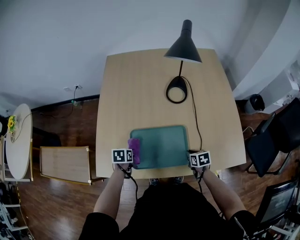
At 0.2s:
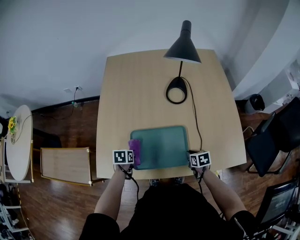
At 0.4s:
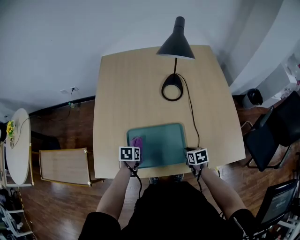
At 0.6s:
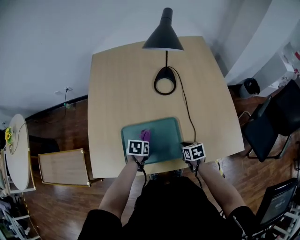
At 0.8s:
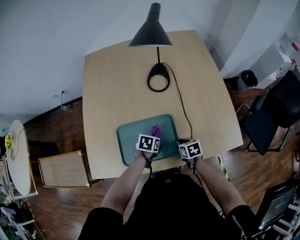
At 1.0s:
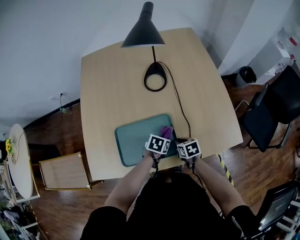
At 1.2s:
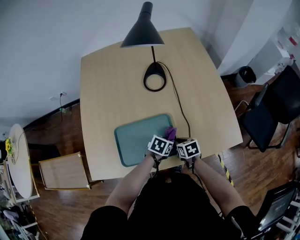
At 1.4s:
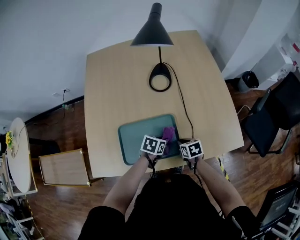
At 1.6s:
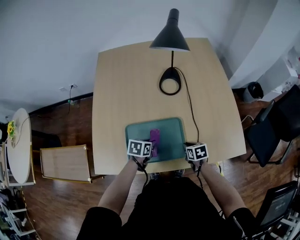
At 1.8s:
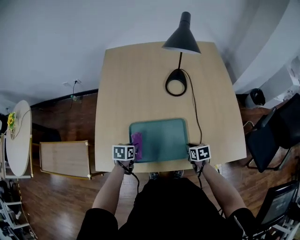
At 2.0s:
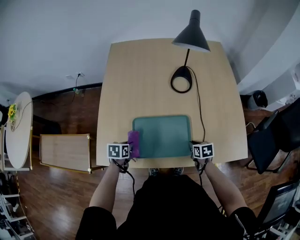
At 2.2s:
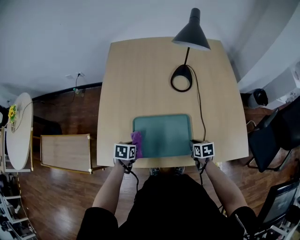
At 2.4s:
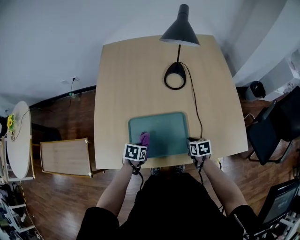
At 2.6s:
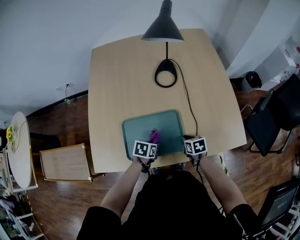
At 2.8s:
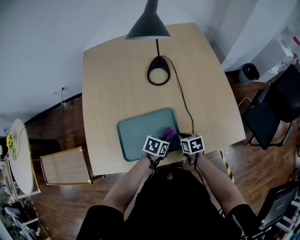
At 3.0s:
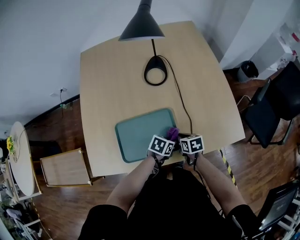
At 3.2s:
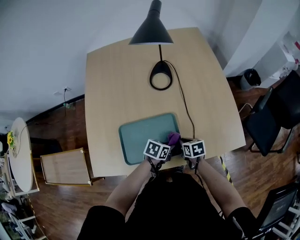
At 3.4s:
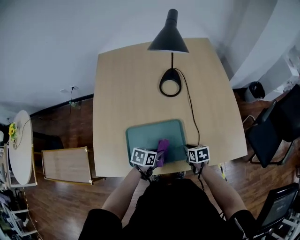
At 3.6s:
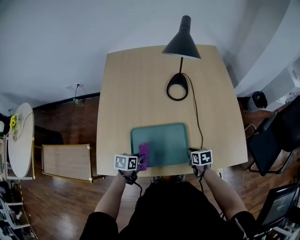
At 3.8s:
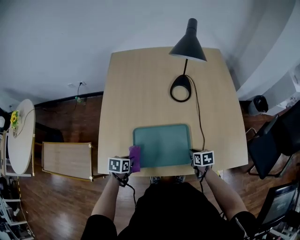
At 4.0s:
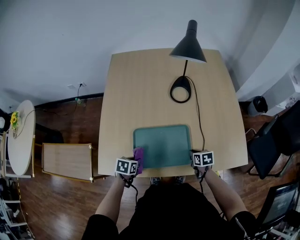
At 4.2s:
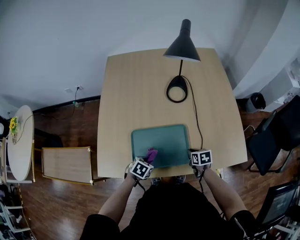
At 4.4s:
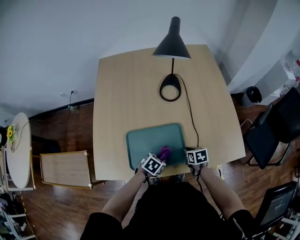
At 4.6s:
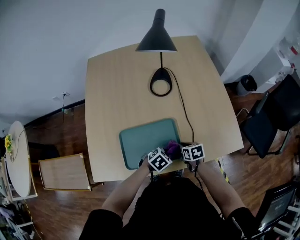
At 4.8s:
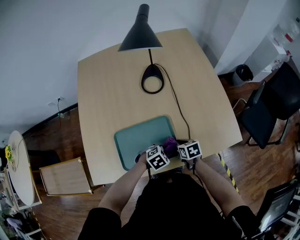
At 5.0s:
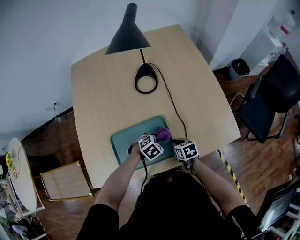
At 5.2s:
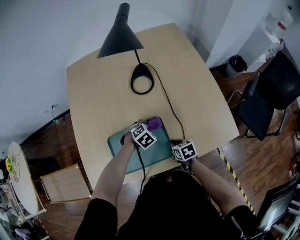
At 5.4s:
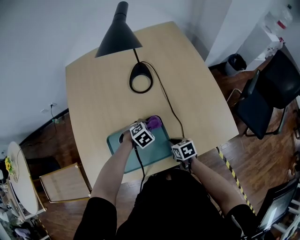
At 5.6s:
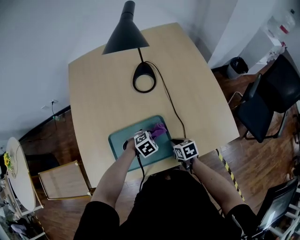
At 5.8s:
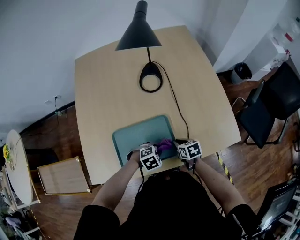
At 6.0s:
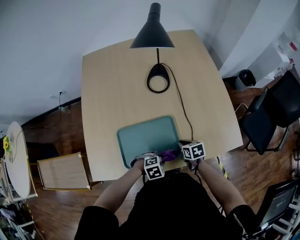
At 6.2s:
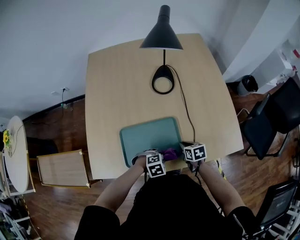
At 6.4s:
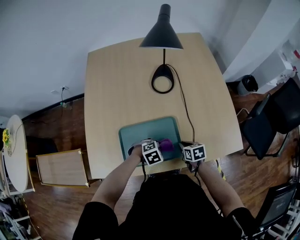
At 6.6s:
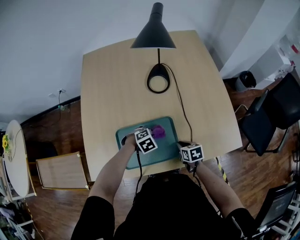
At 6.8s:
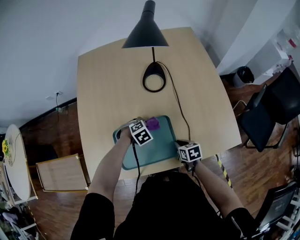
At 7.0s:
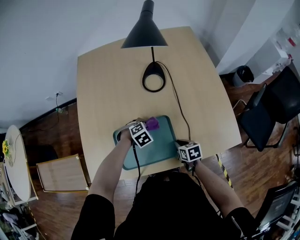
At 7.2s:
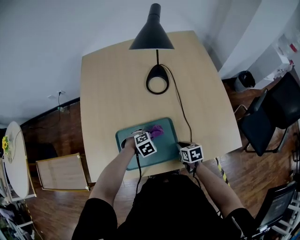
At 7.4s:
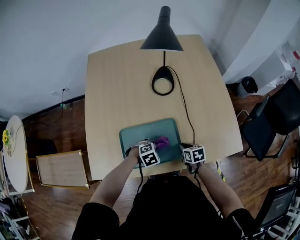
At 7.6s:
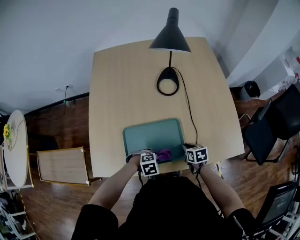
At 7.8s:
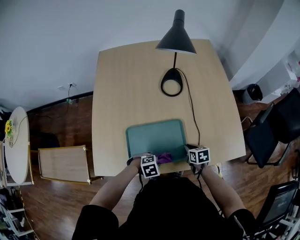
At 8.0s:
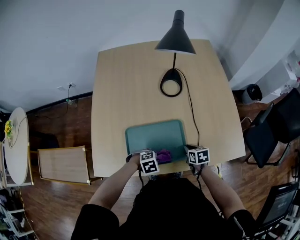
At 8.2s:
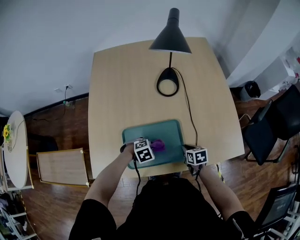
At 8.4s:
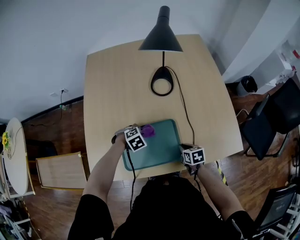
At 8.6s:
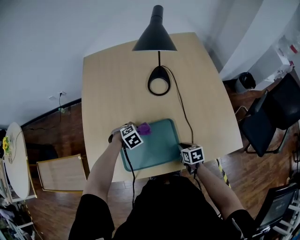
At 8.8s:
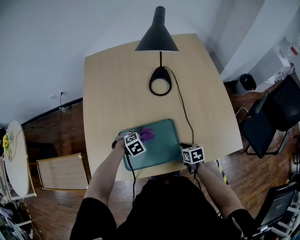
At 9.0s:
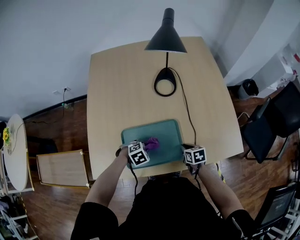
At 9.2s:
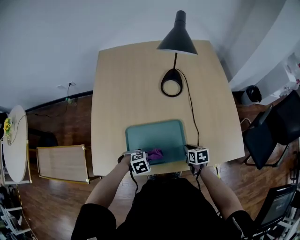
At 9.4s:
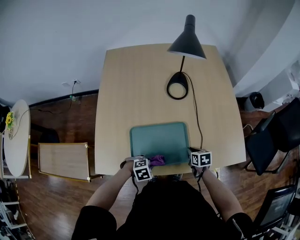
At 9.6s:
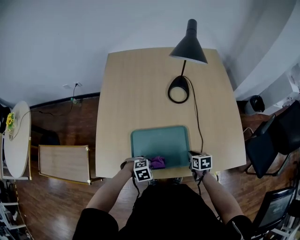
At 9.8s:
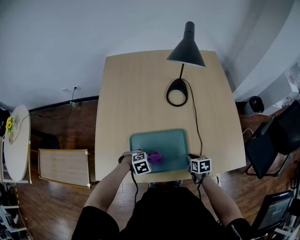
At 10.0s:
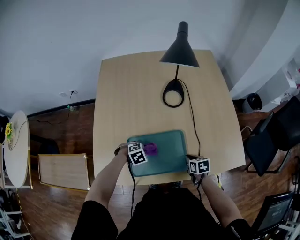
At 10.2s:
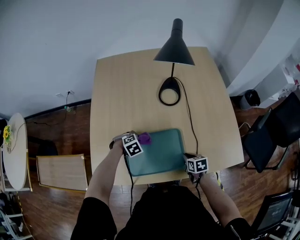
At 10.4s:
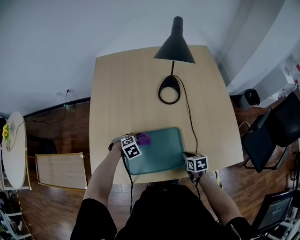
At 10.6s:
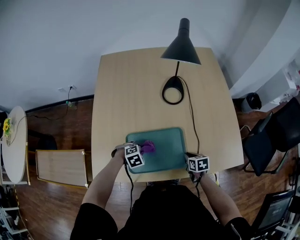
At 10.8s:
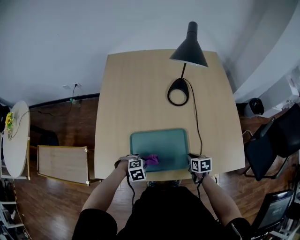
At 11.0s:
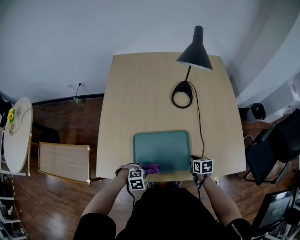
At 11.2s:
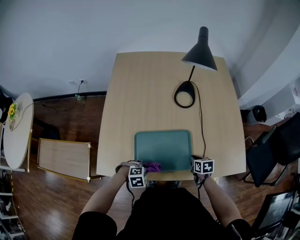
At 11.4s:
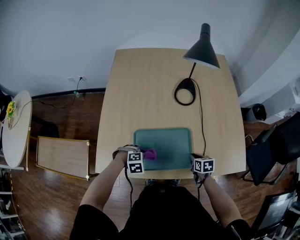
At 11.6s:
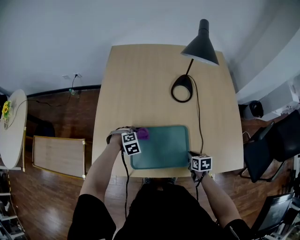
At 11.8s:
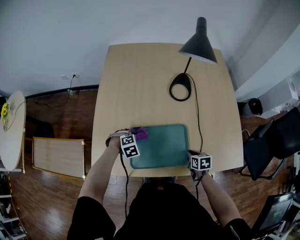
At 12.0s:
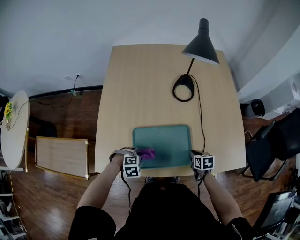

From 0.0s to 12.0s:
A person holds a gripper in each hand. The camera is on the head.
From 0.0s to 1.6s: The left gripper shifts about 15 cm to the right, and turns by roughly 20 degrees.
From 1.6s to 3.0s: The left gripper goes approximately 15 cm to the right, and changes its angle by approximately 20 degrees.
From 3.0s to 4.4s: The left gripper goes to the left and returns, approximately 30 cm each way.
From 4.4s to 6.0s: The left gripper turns by some 40 degrees.
From 9.0s to 10.4s: The left gripper changes place by some 10 cm.
From 10.4s to 12.0s: The left gripper moves about 15 cm.

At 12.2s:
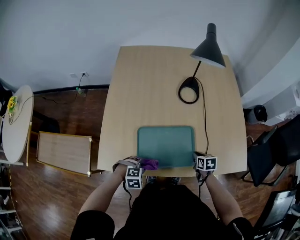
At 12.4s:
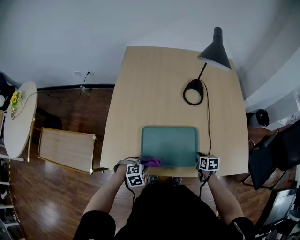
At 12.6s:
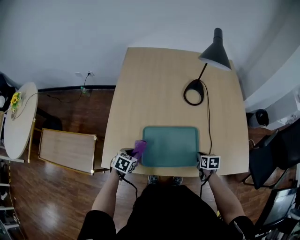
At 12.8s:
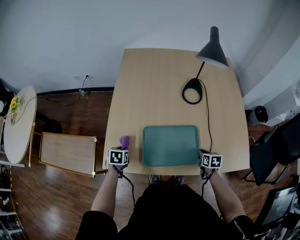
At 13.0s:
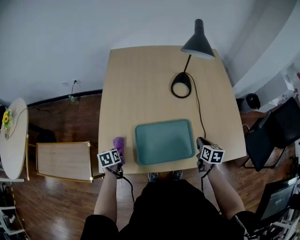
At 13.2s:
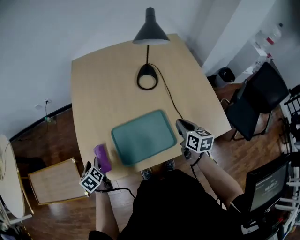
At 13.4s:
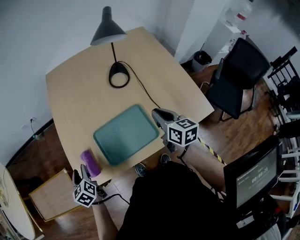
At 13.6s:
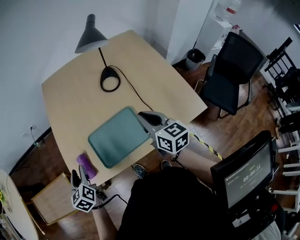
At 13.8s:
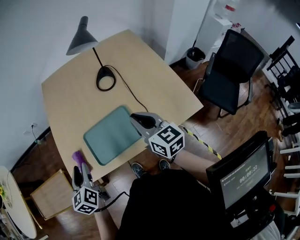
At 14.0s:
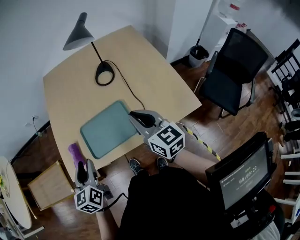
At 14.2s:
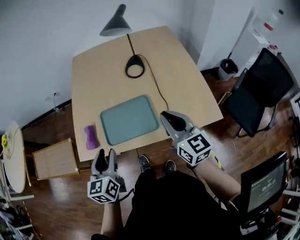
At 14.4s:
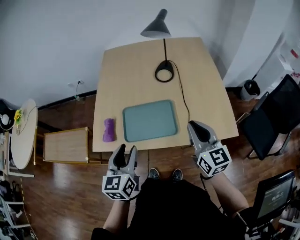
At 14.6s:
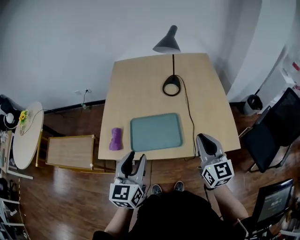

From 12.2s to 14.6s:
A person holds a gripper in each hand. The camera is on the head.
From 12.2s to 13.4s: The right gripper heads upward, covering roughly 25 cm, and angles its fingers upward, by roughly 40 degrees, while the left gripper heads to the left, upward and forward, covering about 25 cm, twists approximately 90 degrees counterclockwise, seen from behind, and opens up.
From 13.4s to 14.6s: The left gripper heads to the right, backward and upward, covering about 35 cm, and swivels some 30 degrees. The right gripper heads backward and upward, covering some 20 cm, and turns by some 30 degrees.

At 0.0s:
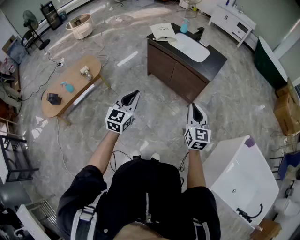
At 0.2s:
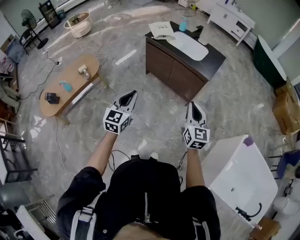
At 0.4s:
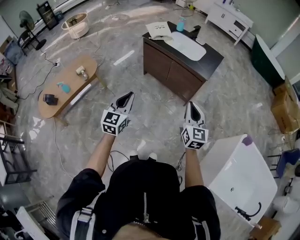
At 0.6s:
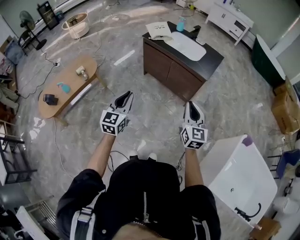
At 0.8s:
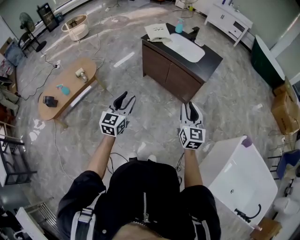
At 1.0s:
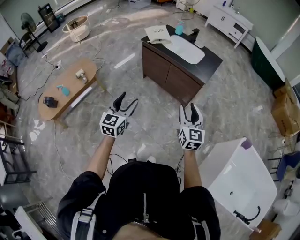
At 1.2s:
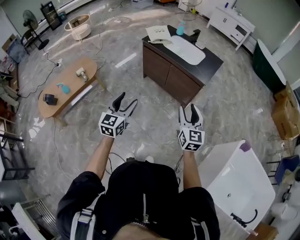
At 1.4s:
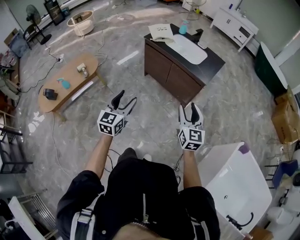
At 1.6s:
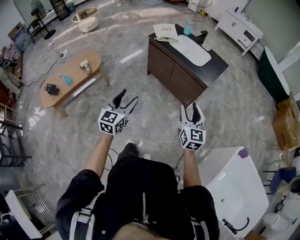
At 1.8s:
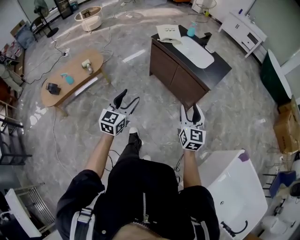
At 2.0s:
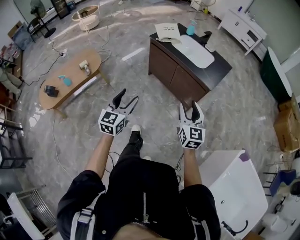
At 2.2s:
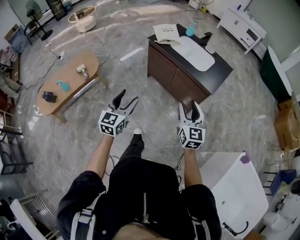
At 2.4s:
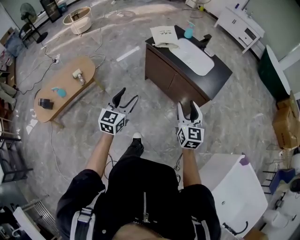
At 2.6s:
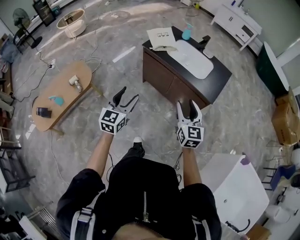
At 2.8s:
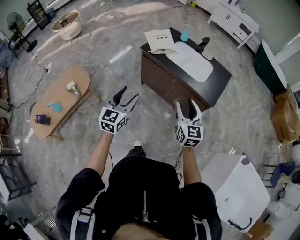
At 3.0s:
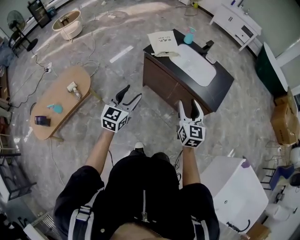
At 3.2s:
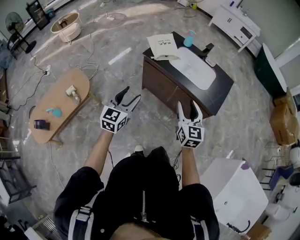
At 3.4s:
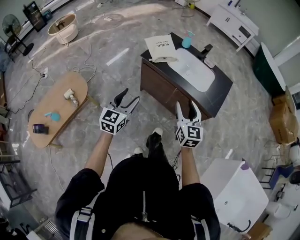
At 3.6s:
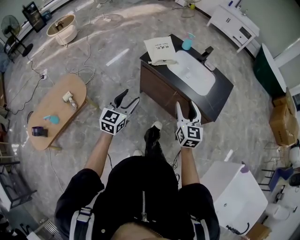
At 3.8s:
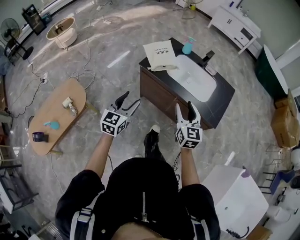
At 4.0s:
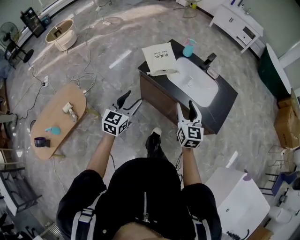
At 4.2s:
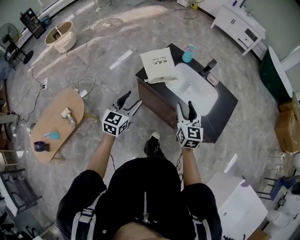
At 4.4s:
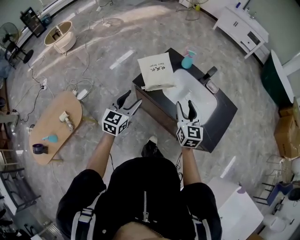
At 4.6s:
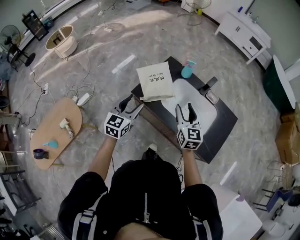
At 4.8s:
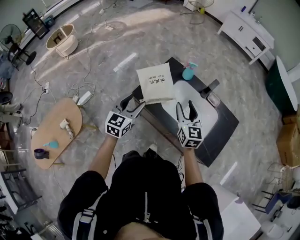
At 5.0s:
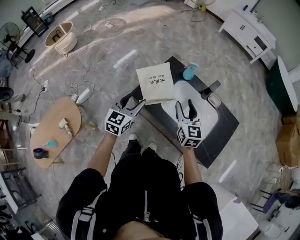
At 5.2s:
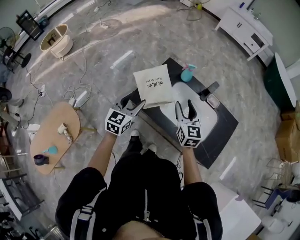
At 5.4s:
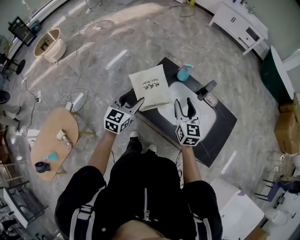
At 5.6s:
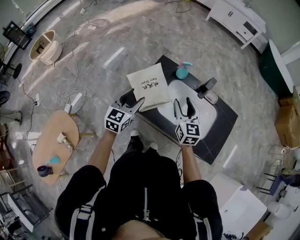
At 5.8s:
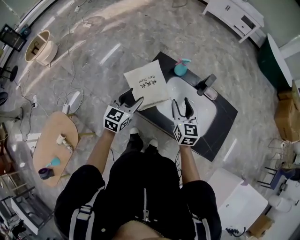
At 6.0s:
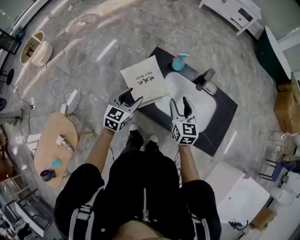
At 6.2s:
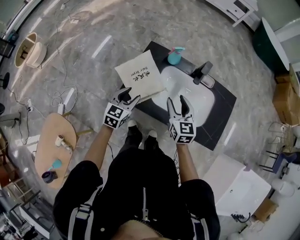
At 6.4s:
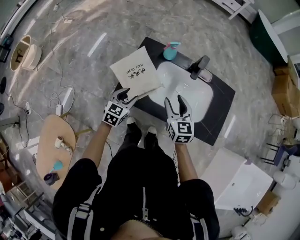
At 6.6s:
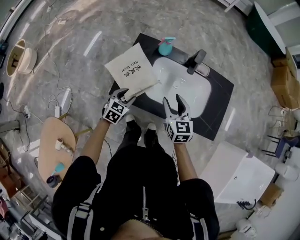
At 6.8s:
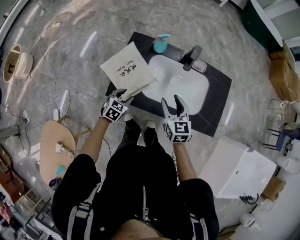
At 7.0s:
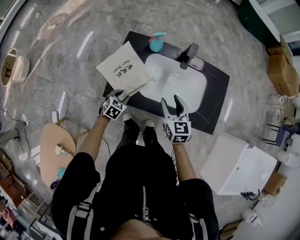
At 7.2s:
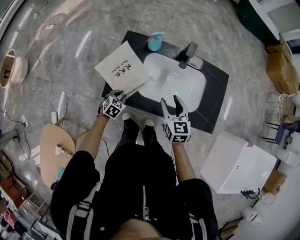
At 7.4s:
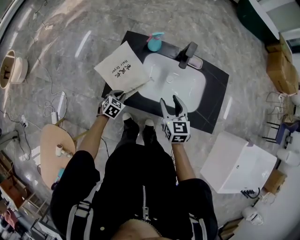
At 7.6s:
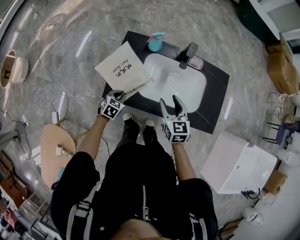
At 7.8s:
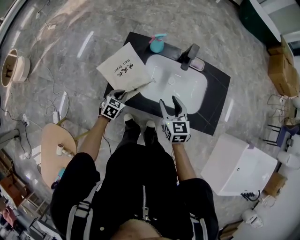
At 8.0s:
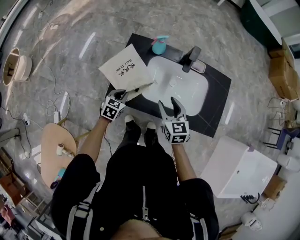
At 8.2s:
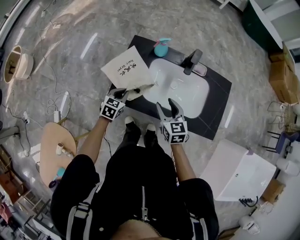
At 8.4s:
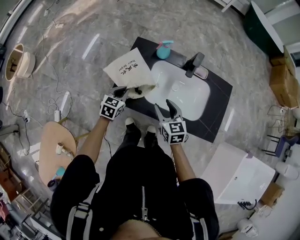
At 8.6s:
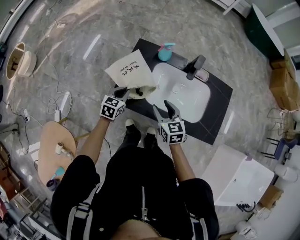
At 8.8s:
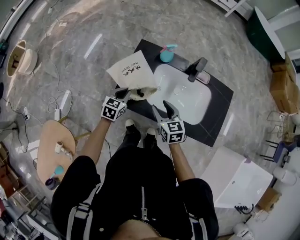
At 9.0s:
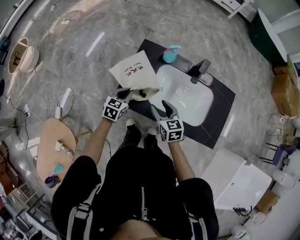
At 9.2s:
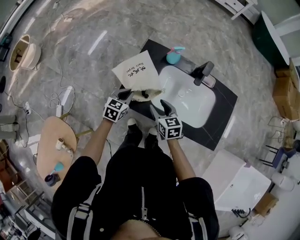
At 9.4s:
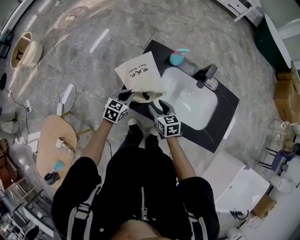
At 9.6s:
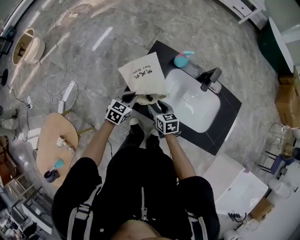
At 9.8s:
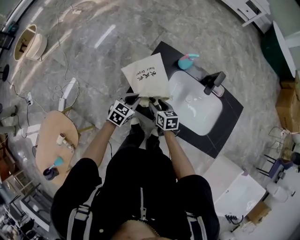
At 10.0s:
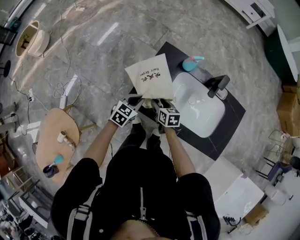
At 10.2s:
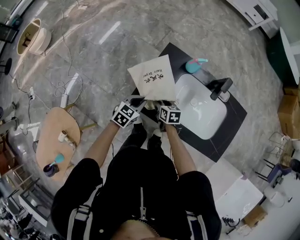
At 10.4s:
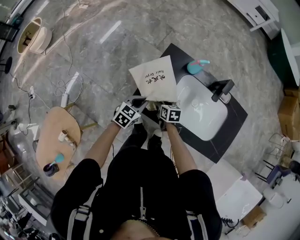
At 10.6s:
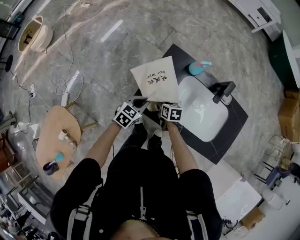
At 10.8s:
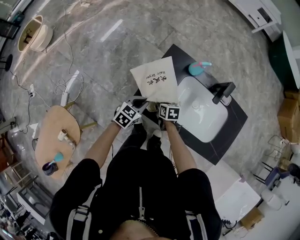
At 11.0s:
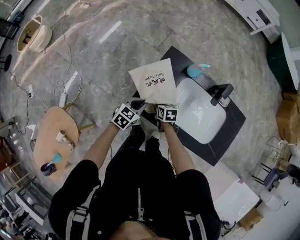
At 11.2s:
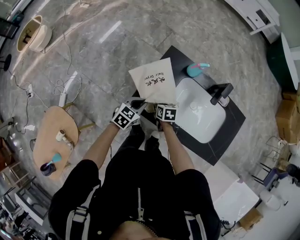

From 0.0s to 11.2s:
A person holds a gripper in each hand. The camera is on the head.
From 0.0s to 1.6s: The left gripper opens; the right gripper opens.
From 1.6s to 3.2s: The right gripper travels forward and to the left by roughly 30 cm, while the left gripper moves forward, approximately 35 cm.
From 3.2s to 4.8s: Both grippers move forward, roughly 40 cm.
From 4.8s to 6.4s: The right gripper shifts some 10 cm downward, while the left gripper travels downward and forward by roughly 20 cm, and swivels approximately 30 degrees.
From 6.4s to 8.0s: The left gripper moves downward, approximately 10 cm, and closes.
From 8.0s to 9.6s: The left gripper ends up approximately 5 cm from where it was, while the right gripper shifts some 15 cm to the left and downward, and turns by about 30 degrees.
From 9.6s to 11.2s: The right gripper shifts roughly 10 cm downward and forward, and closes up.
